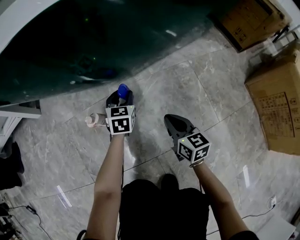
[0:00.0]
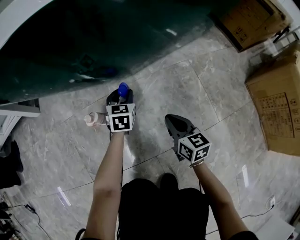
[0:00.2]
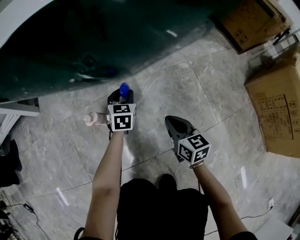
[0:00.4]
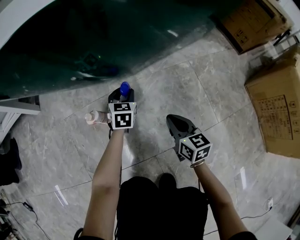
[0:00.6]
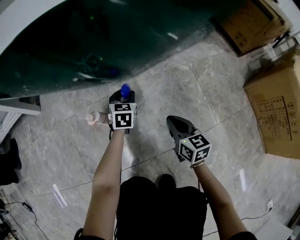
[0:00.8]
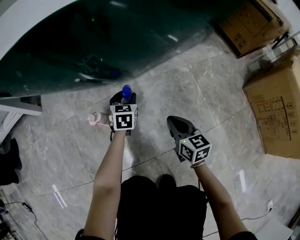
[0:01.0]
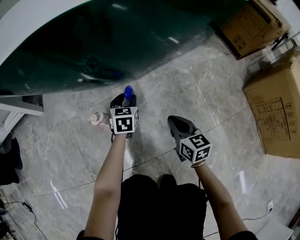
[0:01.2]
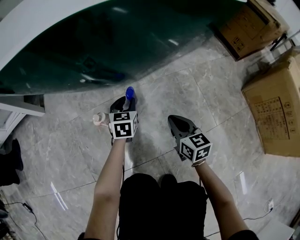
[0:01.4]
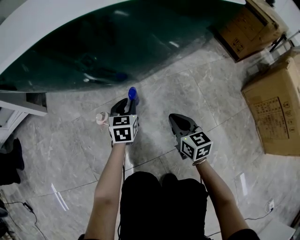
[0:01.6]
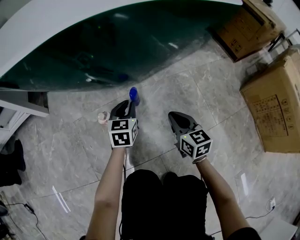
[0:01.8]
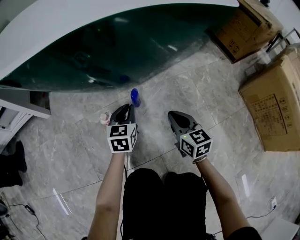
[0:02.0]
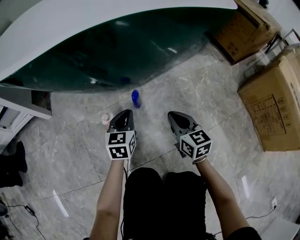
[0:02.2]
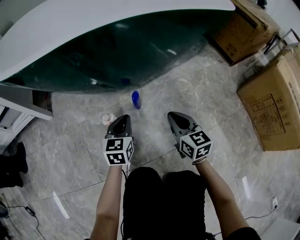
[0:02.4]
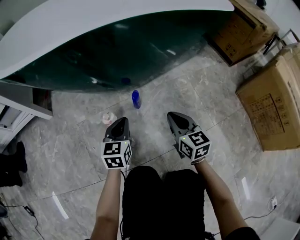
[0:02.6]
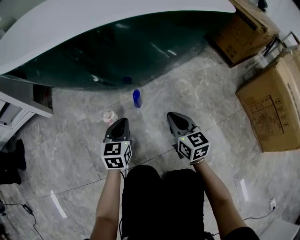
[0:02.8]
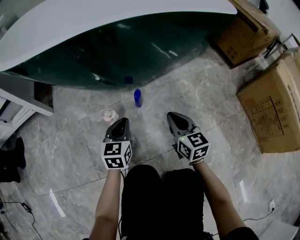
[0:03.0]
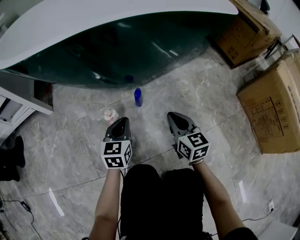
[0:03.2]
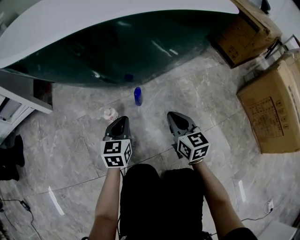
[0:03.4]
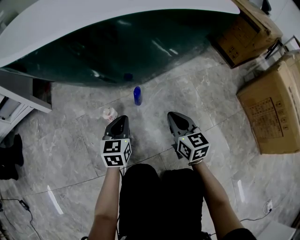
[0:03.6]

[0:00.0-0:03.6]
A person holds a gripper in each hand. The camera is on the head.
0.0 to 1.8 s: The right gripper travels upward by approximately 5 cm, while the left gripper is displaced upward and backward by some 10 cm.
1.8 to 3.6 s: The left gripper moves backward, some 10 cm. The right gripper ends up about 5 cm from where it was.

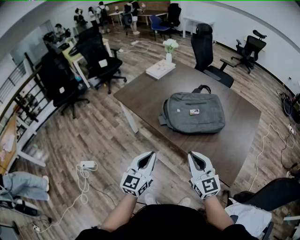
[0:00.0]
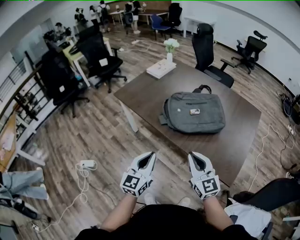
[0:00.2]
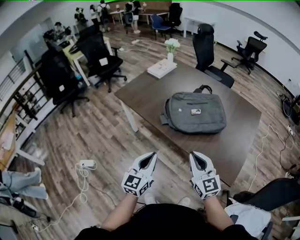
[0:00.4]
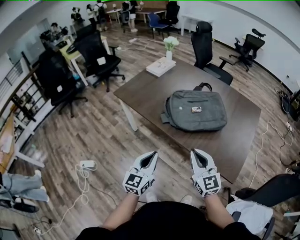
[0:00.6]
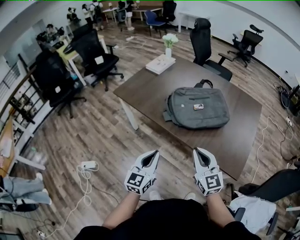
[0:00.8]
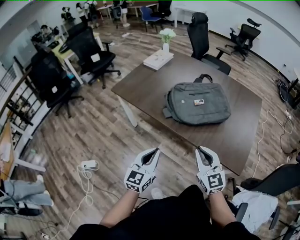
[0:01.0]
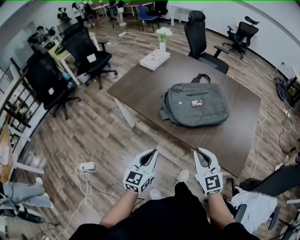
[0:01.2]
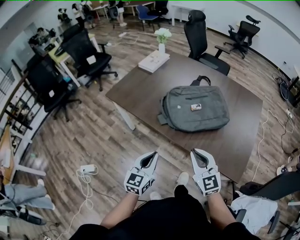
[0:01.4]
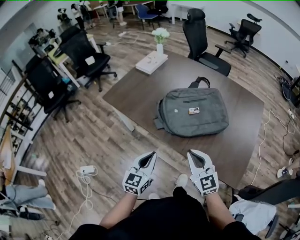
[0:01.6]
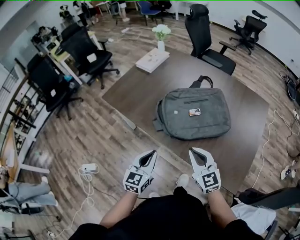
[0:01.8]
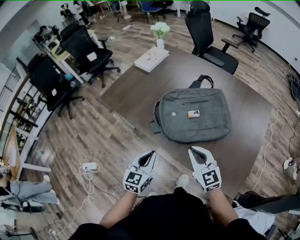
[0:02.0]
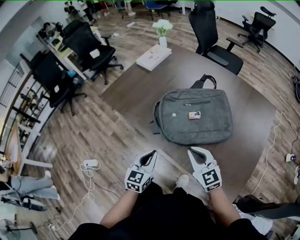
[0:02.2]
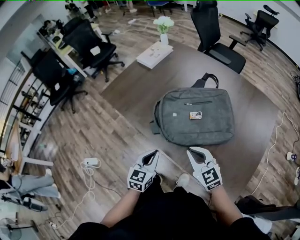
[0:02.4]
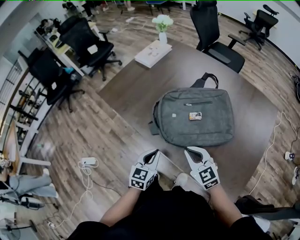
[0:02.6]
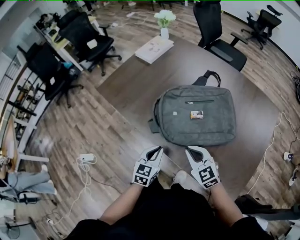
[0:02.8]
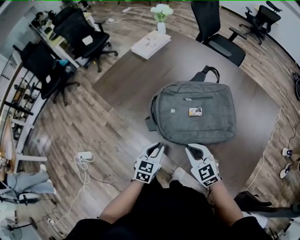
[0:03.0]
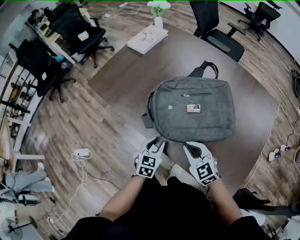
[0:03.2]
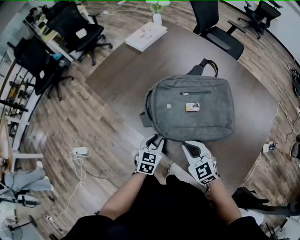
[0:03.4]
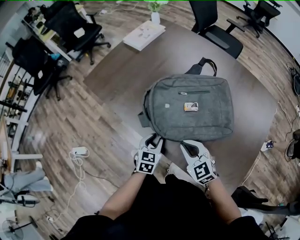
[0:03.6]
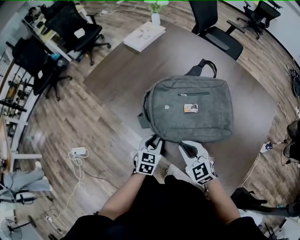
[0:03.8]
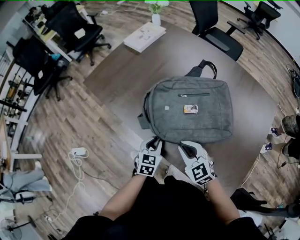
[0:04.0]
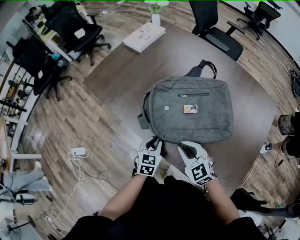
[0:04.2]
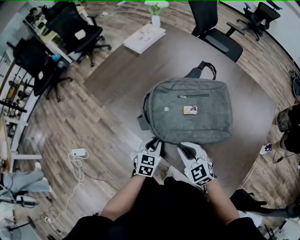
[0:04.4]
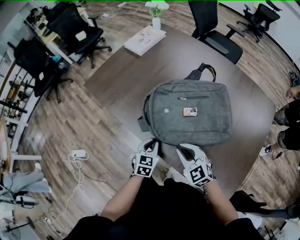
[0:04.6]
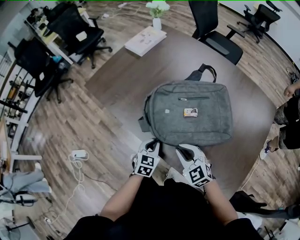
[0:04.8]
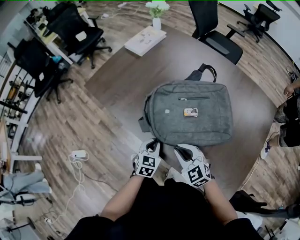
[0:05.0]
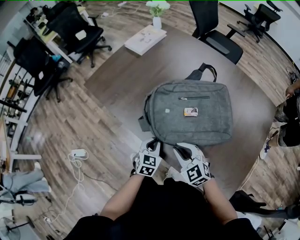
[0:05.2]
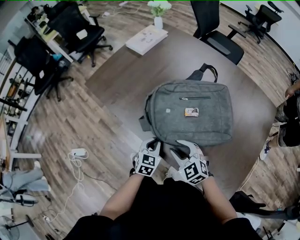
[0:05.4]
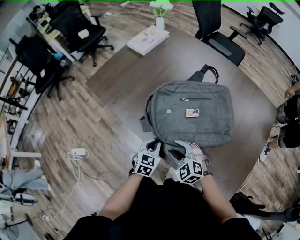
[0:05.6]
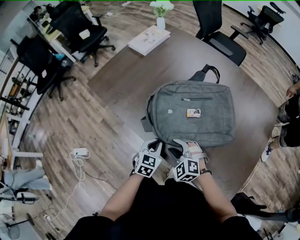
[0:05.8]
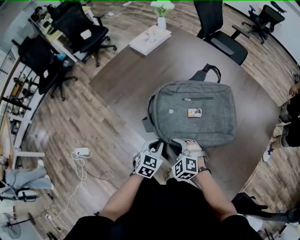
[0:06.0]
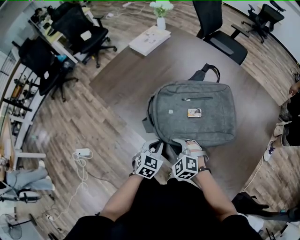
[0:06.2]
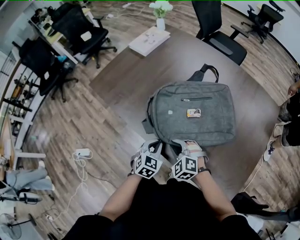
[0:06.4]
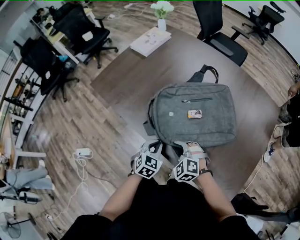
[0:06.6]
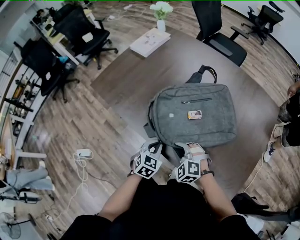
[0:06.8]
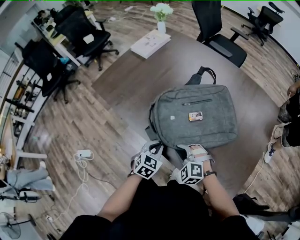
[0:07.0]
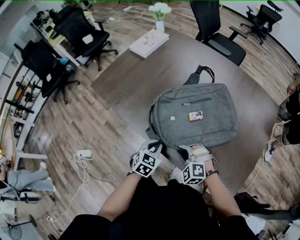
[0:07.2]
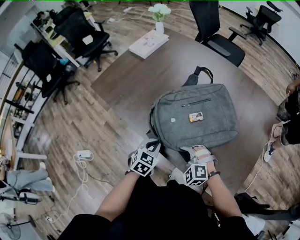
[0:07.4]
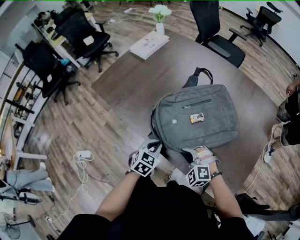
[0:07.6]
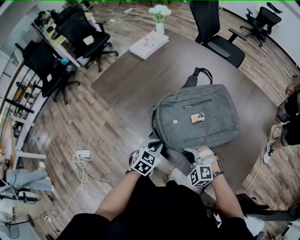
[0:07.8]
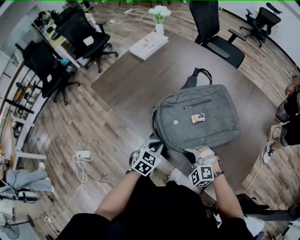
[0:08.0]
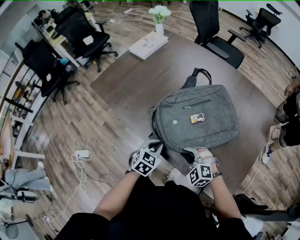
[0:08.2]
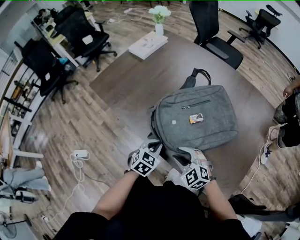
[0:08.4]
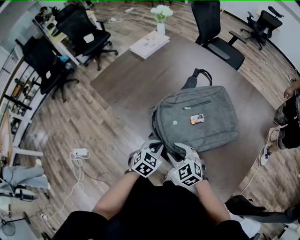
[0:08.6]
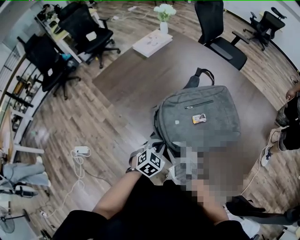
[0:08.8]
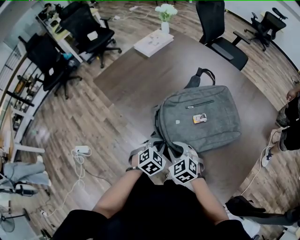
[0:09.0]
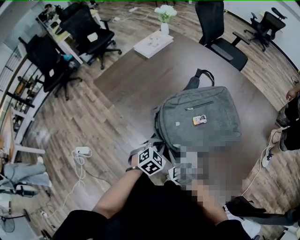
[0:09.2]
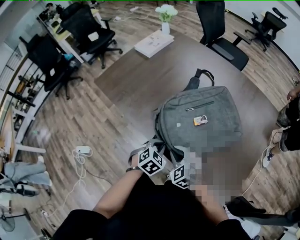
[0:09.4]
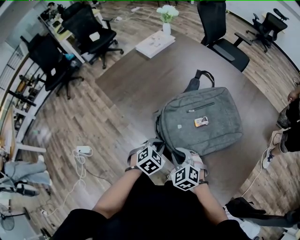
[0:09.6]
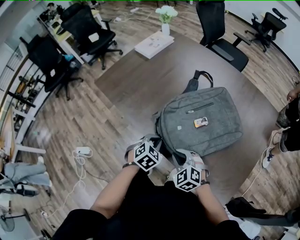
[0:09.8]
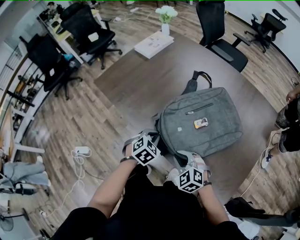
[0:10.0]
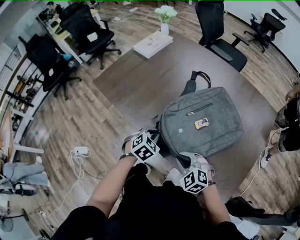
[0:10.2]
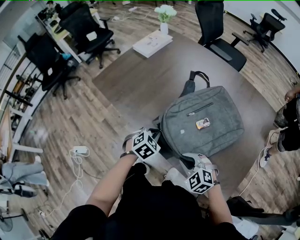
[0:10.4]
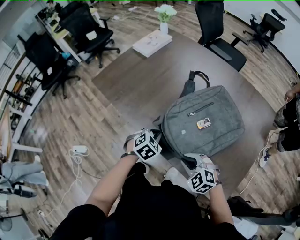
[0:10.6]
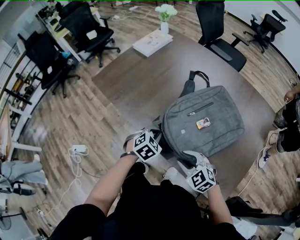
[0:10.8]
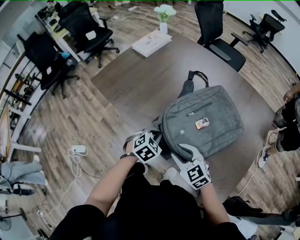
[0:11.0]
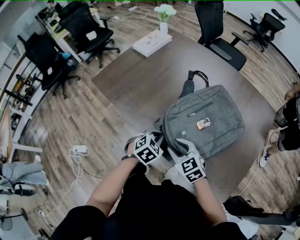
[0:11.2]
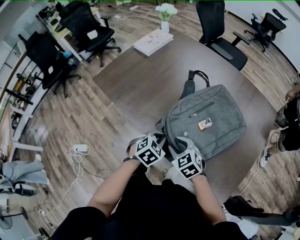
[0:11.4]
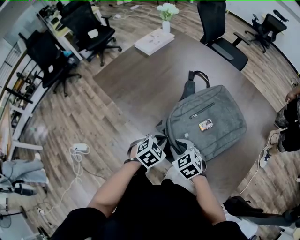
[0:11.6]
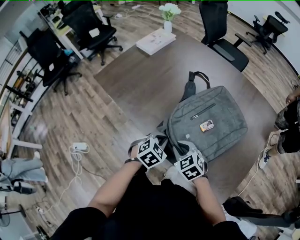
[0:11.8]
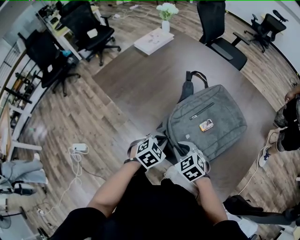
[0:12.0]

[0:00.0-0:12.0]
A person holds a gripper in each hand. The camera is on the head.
0.0 to 1.6 s: The right gripper moves forward, about 10 cm, while the left gripper heads forward and downward, covering roughly 10 cm.
1.6 to 3.0 s: The right gripper goes approximately 15 cm downward and forward, and rotates some 20 degrees; the left gripper moves downward, forward and to the right, roughly 20 cm.
3.0 to 4.4 s: The left gripper ends up approximately 5 cm from where it was.
4.4 to 6.0 s: The right gripper moves downward and to the left, approximately 10 cm, and turns by about 30 degrees.
6.0 to 7.6 s: The right gripper goes approximately 10 cm to the right and backward.
7.6 to 9.0 s: The right gripper shifts by approximately 5 cm, swivels roughly 30 degrees, and opens, then closes again.
9.0 to 10.4 s: The right gripper moves to the right and backward, some 10 cm. Meanwhile the left gripper moves forward, roughly 5 cm.
10.4 to 12.0 s: The right gripper ends up approximately 5 cm from where it was, and opens and closes again. Meanwhile the left gripper moves about 5 cm.

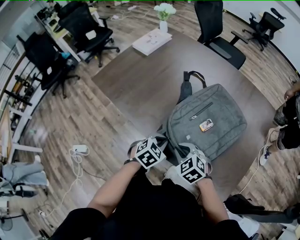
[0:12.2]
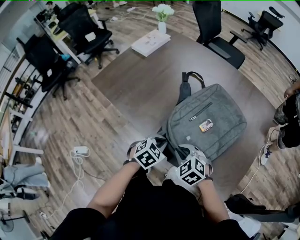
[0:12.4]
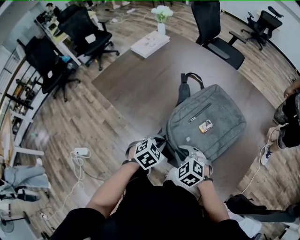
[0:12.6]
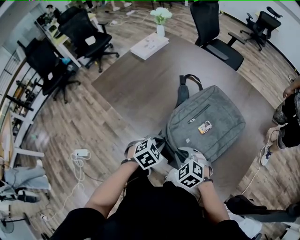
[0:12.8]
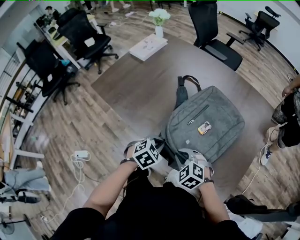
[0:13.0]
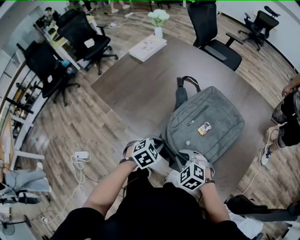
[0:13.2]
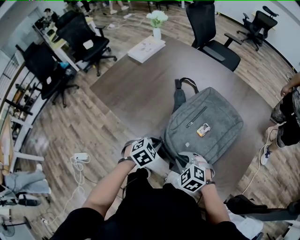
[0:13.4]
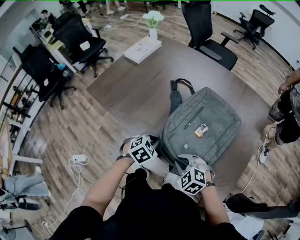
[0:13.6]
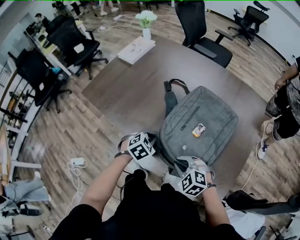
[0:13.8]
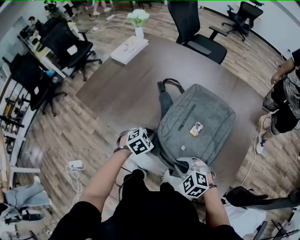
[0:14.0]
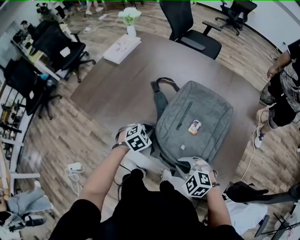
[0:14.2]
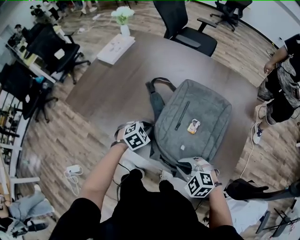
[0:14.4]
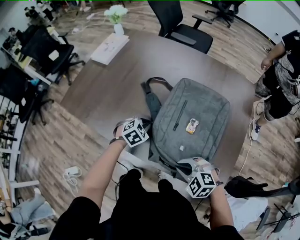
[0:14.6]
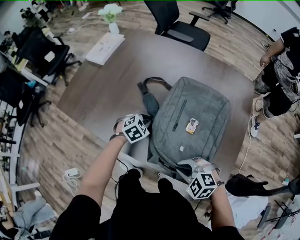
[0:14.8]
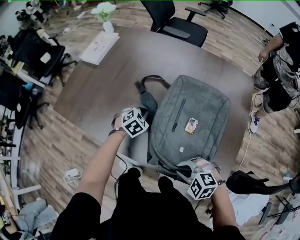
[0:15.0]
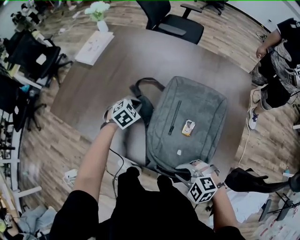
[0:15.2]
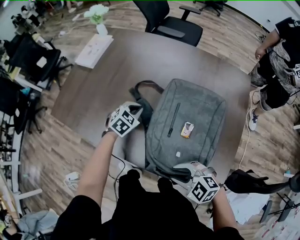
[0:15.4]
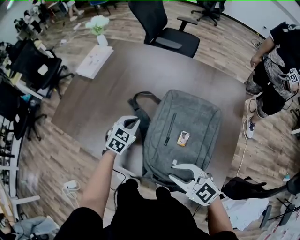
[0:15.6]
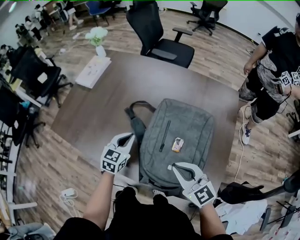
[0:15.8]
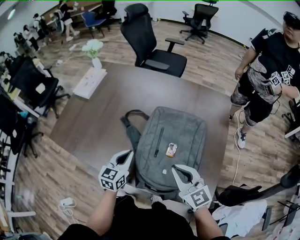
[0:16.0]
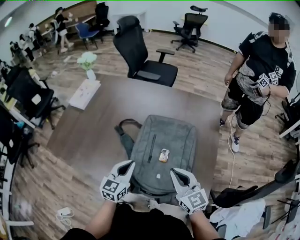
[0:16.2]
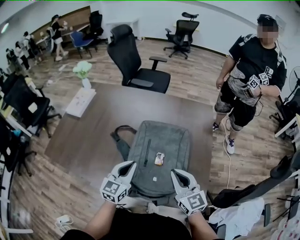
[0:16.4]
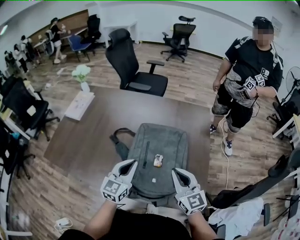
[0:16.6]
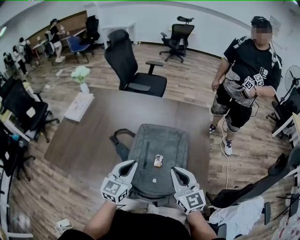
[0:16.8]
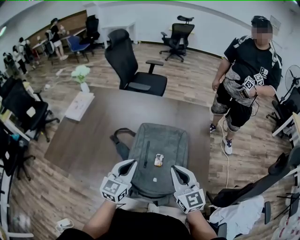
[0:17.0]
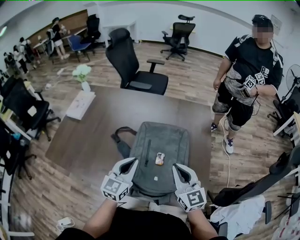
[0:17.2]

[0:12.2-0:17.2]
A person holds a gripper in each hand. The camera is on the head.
12.2 to 13.8 s: The right gripper ends up roughly 5 cm from where it was.
13.8 to 15.6 s: The left gripper moves forward and to the right, approximately 15 cm, and turns by some 20 degrees; the right gripper is displaced upward and to the right by some 10 cm, and swivels approximately 30 degrees.
15.6 to 17.2 s: The right gripper shifts by approximately 15 cm, changes its angle by roughly 50 degrees, and closes up. Meanwhile the left gripper travels upward by roughly 15 cm, and tips its fingers upward by about 30 degrees.

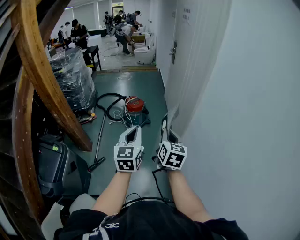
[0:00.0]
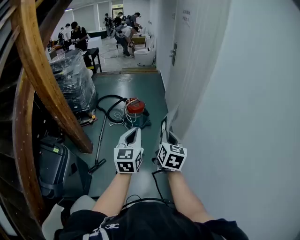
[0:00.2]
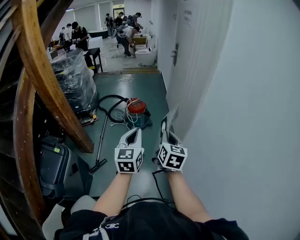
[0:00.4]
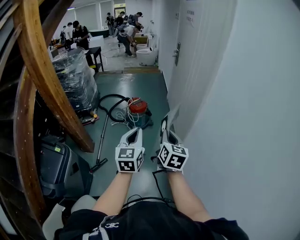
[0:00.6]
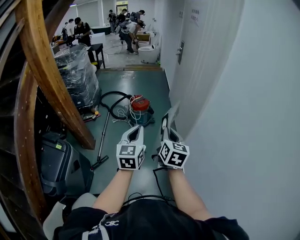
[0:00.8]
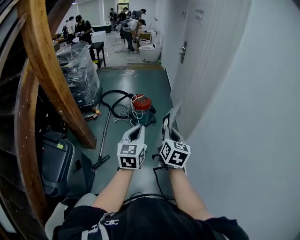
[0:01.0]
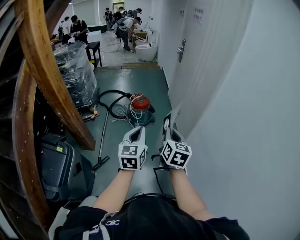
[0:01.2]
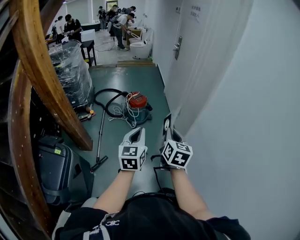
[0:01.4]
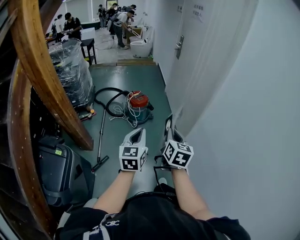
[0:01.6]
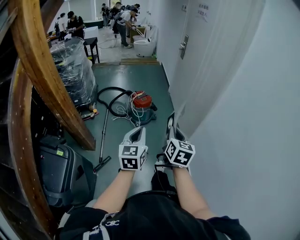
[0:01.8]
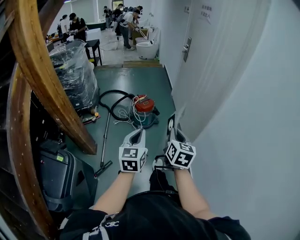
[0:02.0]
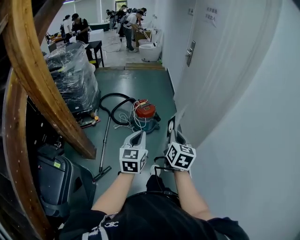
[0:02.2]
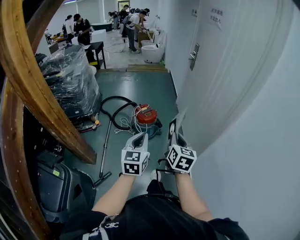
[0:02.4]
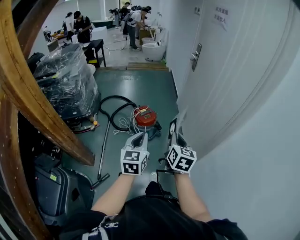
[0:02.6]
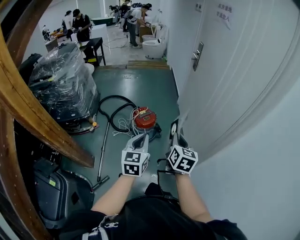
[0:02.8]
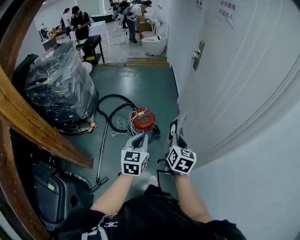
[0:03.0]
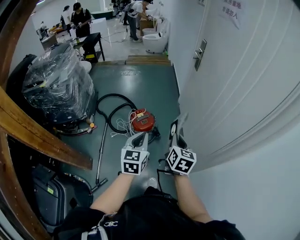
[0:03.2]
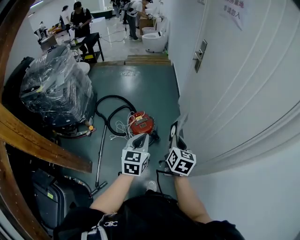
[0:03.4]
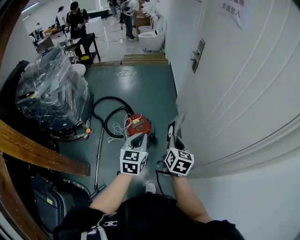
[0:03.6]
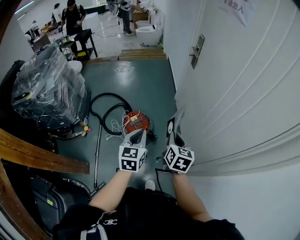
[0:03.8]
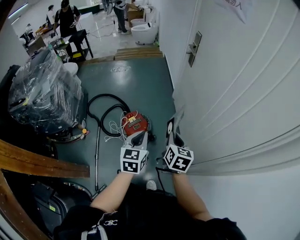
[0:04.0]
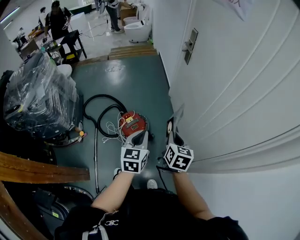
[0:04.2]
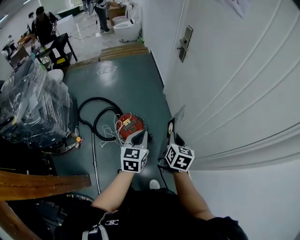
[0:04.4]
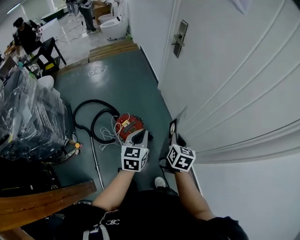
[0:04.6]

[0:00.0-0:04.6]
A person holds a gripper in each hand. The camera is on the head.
0.0 to 1.6 s: The right gripper shifts some 10 cm to the left, while the left gripper moves to the left and downward, roughly 15 cm.
1.6 to 3.0 s: The grippers both shift forward by approximately 40 cm.
3.0 to 4.6 s: The left gripper shifts about 25 cm forward, and swivels about 20 degrees. The right gripper shifts roughly 25 cm forward and downward, and changes its angle by roughly 20 degrees.
